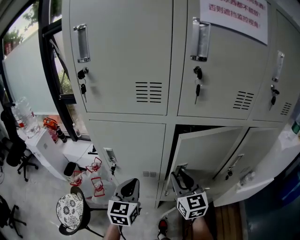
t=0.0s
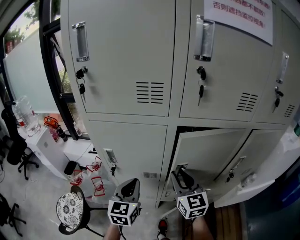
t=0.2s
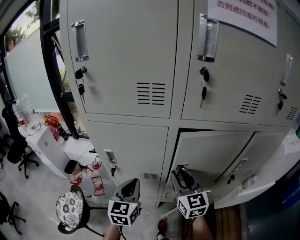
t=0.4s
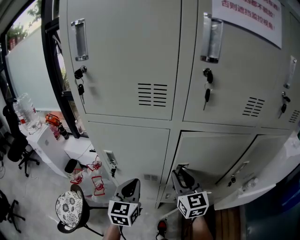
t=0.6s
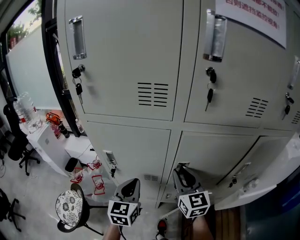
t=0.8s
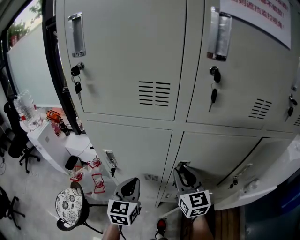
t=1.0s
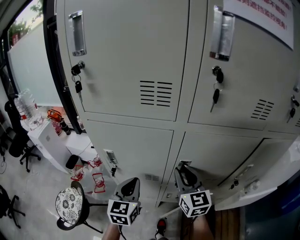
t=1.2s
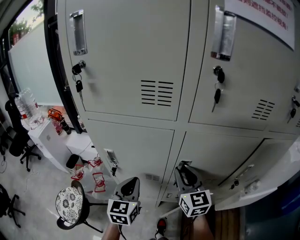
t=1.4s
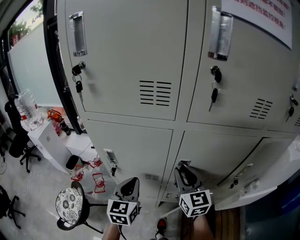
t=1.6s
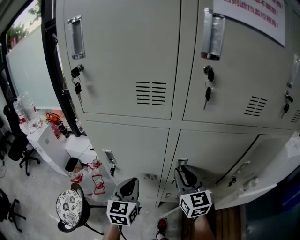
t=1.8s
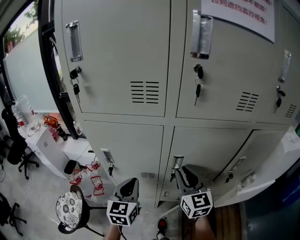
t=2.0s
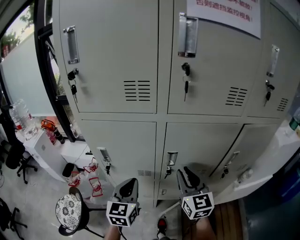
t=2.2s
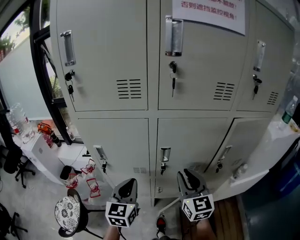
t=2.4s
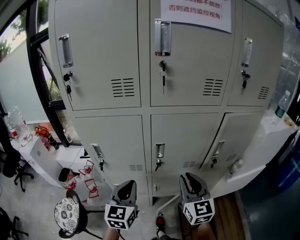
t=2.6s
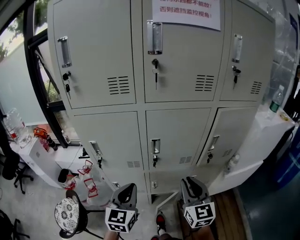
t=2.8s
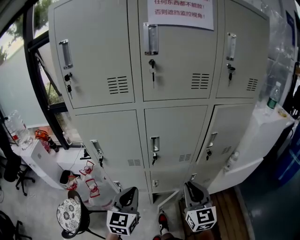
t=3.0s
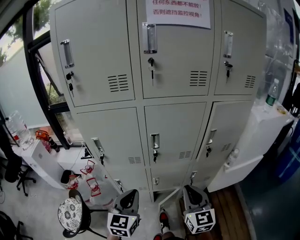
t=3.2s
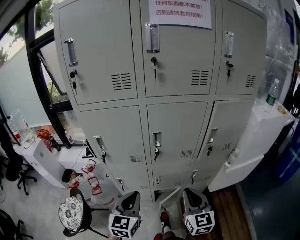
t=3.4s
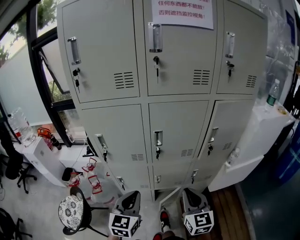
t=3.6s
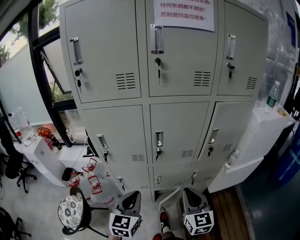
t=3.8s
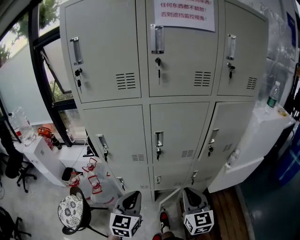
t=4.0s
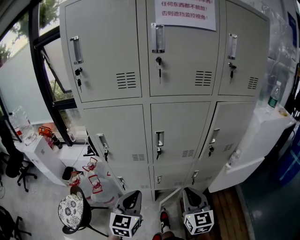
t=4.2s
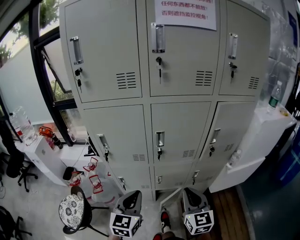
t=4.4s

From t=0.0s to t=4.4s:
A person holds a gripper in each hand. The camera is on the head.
From t=0.0s to t=1.4s: The right gripper heads forward, covering some 5 cm.
From t=1.4s to t=3.0s: Both grippers travel together backward and to the right, some 20 cm.
From t=3.0s to t=4.4s: The right gripper ends up about 5 cm from where it was.

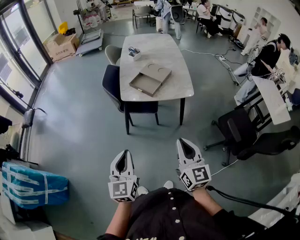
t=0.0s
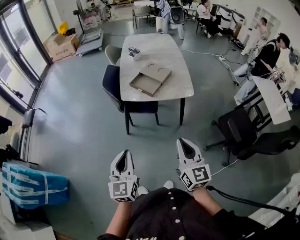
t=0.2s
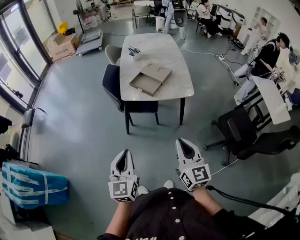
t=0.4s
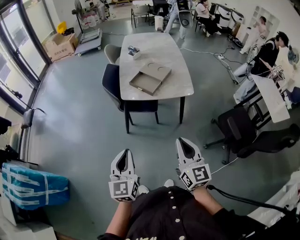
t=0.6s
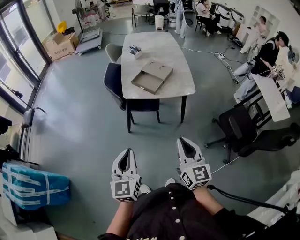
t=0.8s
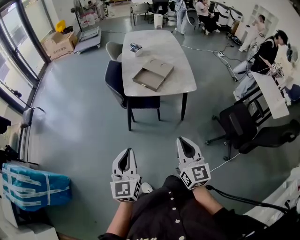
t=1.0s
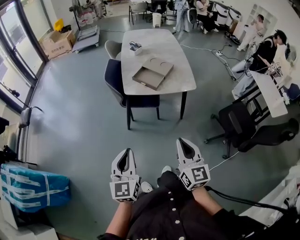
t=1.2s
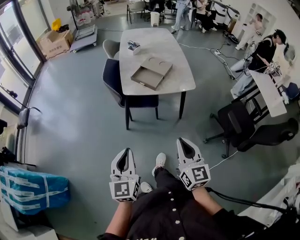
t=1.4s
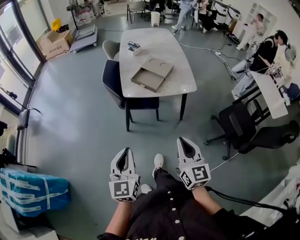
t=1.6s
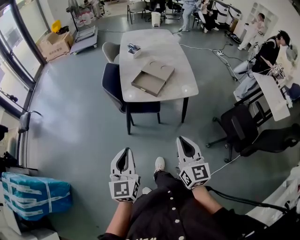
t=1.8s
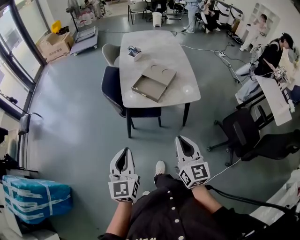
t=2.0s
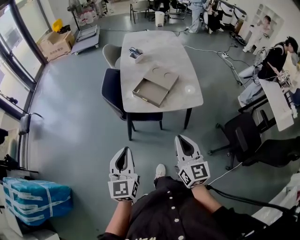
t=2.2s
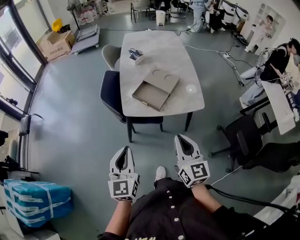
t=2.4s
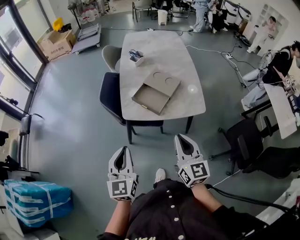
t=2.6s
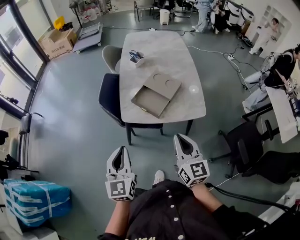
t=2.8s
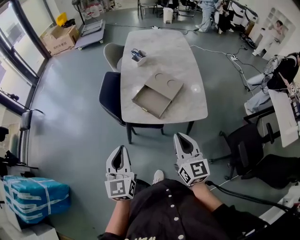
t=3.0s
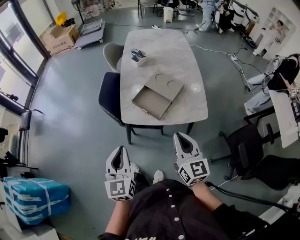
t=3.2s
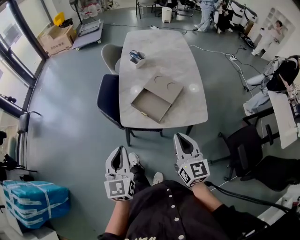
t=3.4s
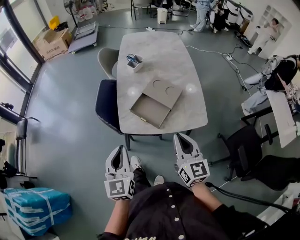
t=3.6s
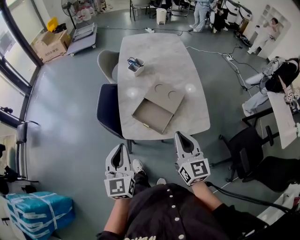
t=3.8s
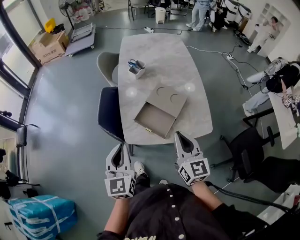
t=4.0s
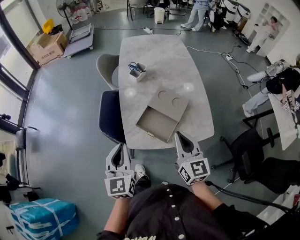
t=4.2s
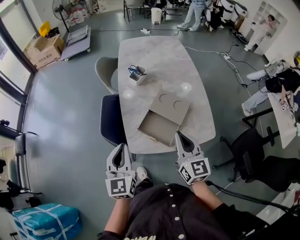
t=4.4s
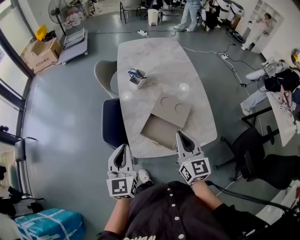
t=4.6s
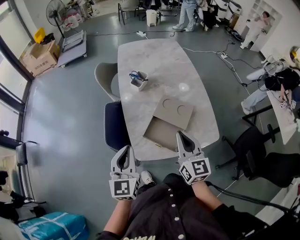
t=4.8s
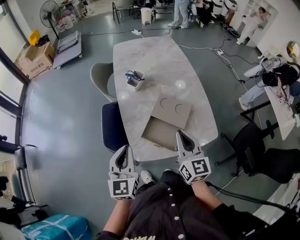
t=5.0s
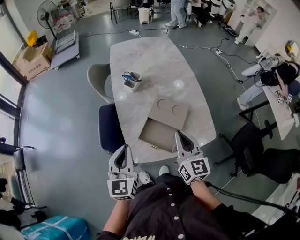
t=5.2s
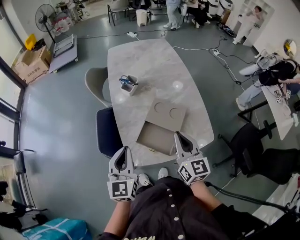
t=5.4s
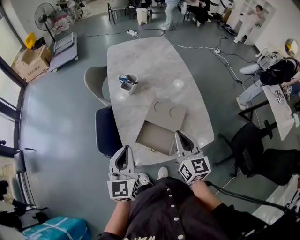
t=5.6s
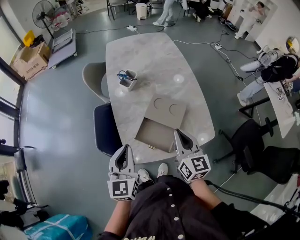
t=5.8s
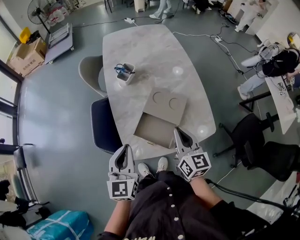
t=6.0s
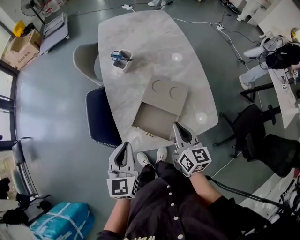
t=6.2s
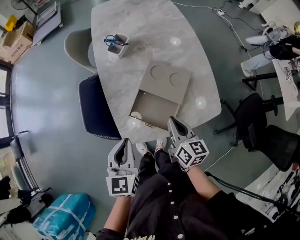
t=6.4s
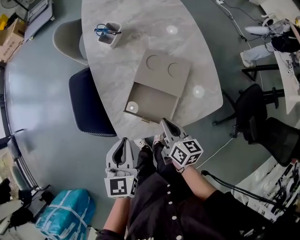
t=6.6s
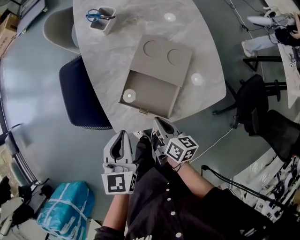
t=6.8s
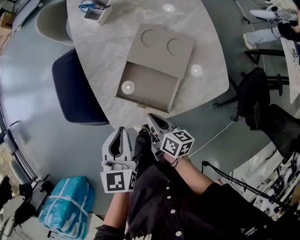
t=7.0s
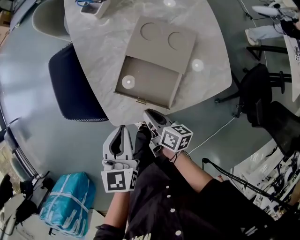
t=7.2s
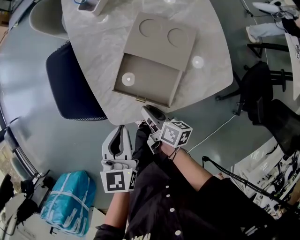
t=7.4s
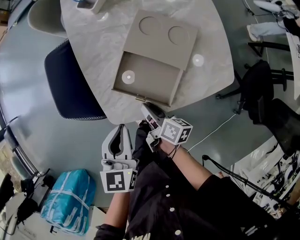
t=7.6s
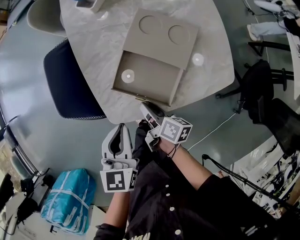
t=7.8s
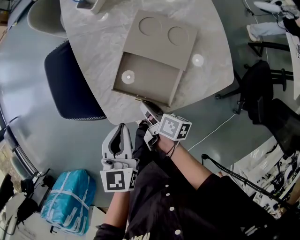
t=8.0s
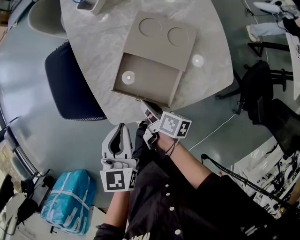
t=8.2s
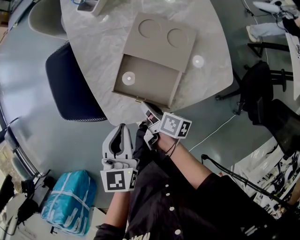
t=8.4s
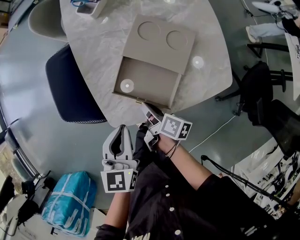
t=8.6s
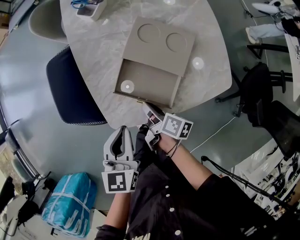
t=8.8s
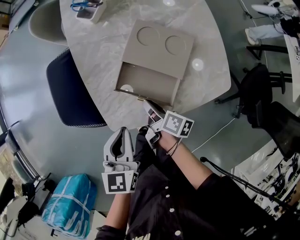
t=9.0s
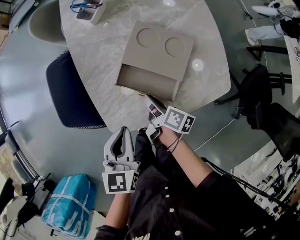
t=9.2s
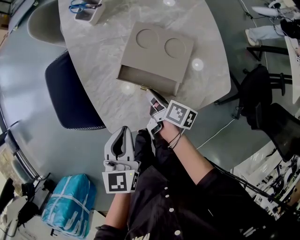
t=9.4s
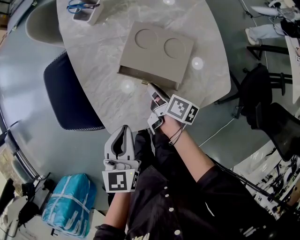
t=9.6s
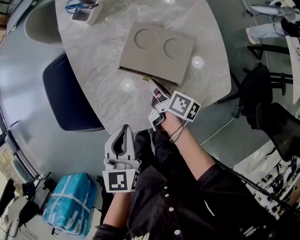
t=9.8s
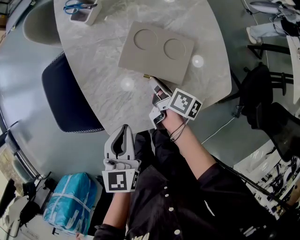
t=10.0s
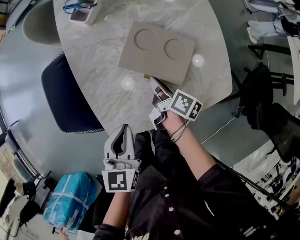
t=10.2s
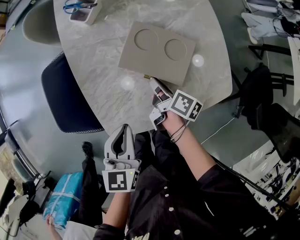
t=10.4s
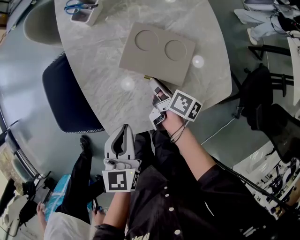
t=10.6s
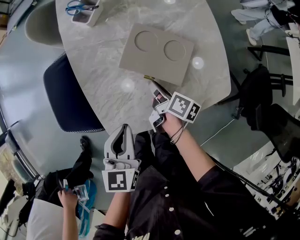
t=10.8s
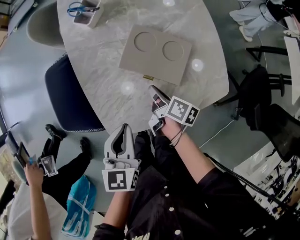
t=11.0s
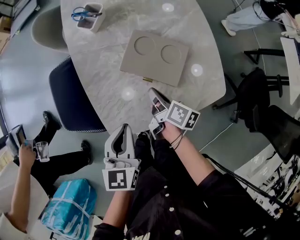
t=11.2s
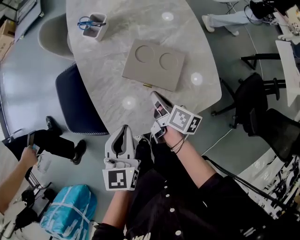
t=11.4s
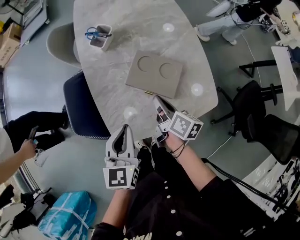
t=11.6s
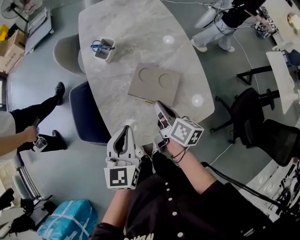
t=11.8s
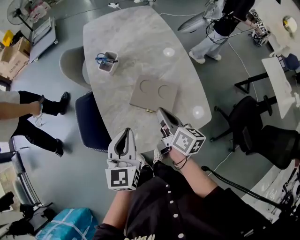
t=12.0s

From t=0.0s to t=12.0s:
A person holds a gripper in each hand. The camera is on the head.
From t=0.0s to t=1.6s: Both grippers travel together to the left, about 5 cm.
From t=1.6s to t=3.0s: The grippers both shift forward by some 25 cm.
From t=3.0s to t=4.4s: The two grippers go some 20 cm forward.
From t=4.4s to t=6.0s: Both grippers travel together forward, roughly 5 cm.
From t=6.0s to t=7.6s: The right gripper moves downward, about 30 cm, and rolls clockwise, seen from behind, by about 50 degrees. The left gripper is displaced downward by some 15 cm.
From t=7.6s to t=9.0s: The grippers stay close to where they were, moving slightly.
From t=9.0s to t=10.4s: The right gripper travels forward and to the right by roughly 10 cm.
From t=10.4s to t=12.0s: Both grippers travel together upward, some 20 cm. The right gripper rotates approximately 30 degrees.

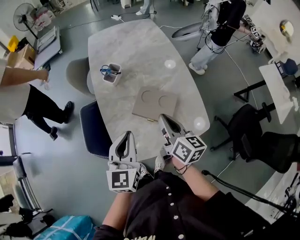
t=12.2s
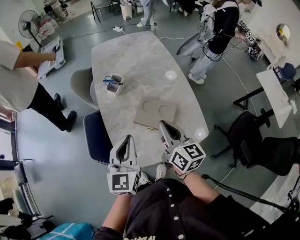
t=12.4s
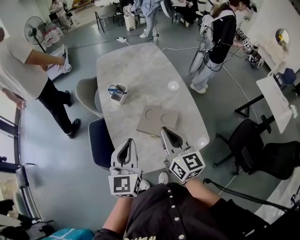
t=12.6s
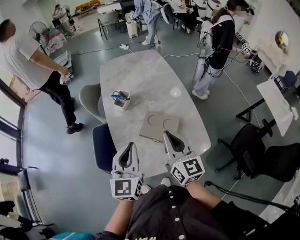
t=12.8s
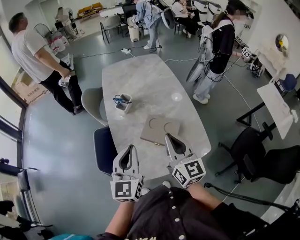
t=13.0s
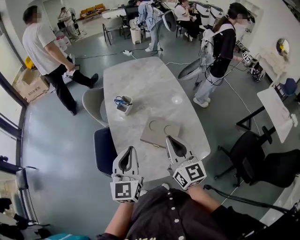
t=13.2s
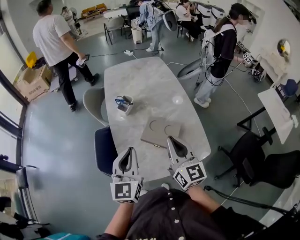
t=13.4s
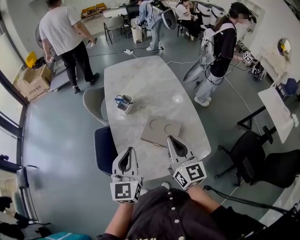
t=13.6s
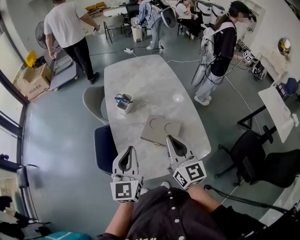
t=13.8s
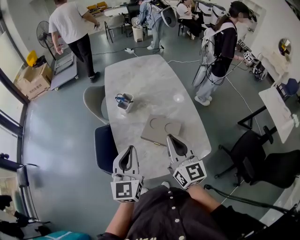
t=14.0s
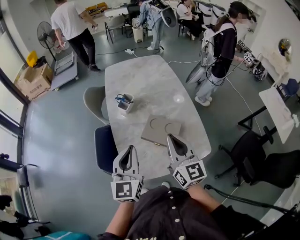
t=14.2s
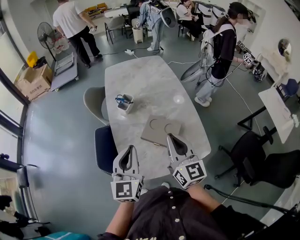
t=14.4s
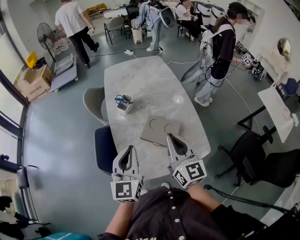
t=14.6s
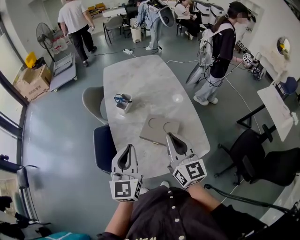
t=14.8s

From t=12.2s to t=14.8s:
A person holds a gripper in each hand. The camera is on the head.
From t=12.2s to t=13.4s: The right gripper shifts roughly 10 cm upward, and turns by about 30 degrees. The left gripper is displaced upward by some 5 cm.
From t=13.4s to t=14.8s: The grippers move only a little.

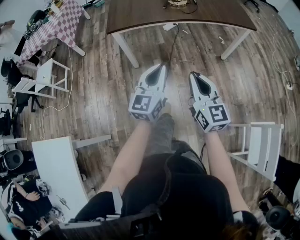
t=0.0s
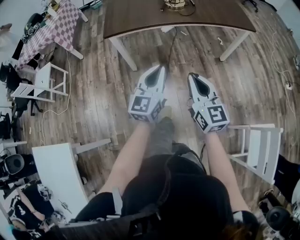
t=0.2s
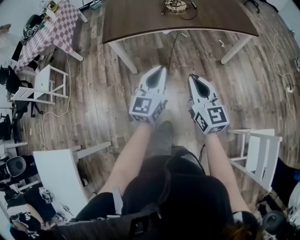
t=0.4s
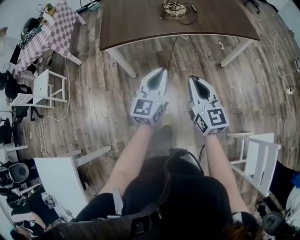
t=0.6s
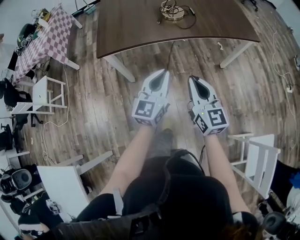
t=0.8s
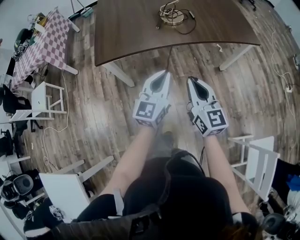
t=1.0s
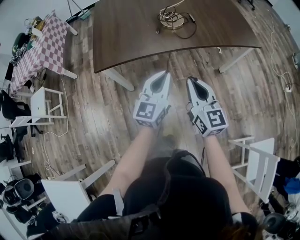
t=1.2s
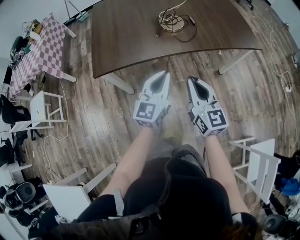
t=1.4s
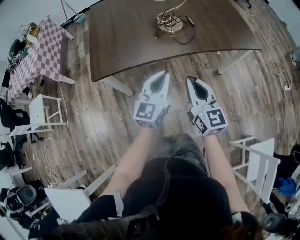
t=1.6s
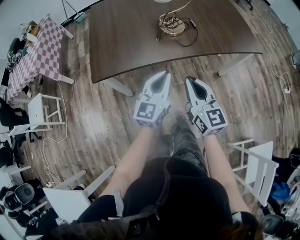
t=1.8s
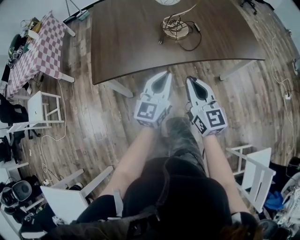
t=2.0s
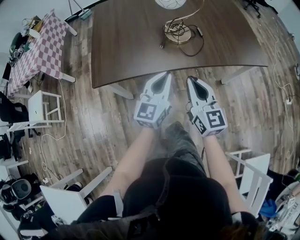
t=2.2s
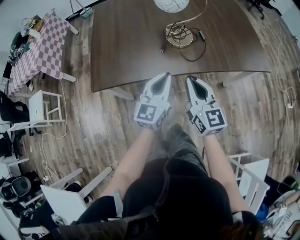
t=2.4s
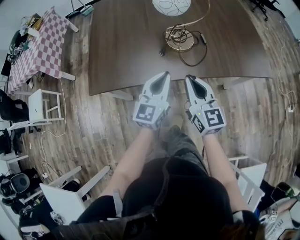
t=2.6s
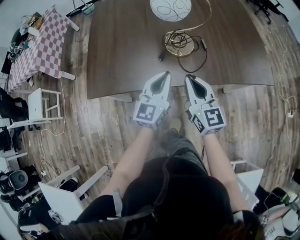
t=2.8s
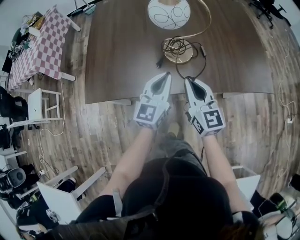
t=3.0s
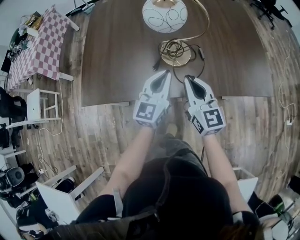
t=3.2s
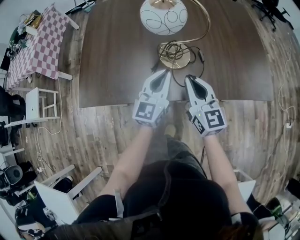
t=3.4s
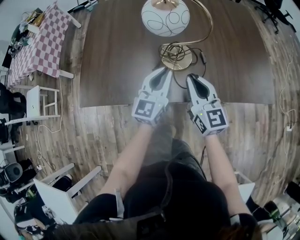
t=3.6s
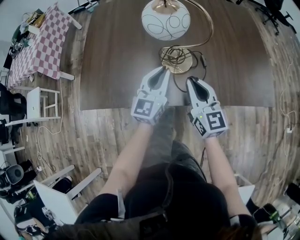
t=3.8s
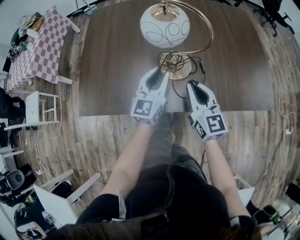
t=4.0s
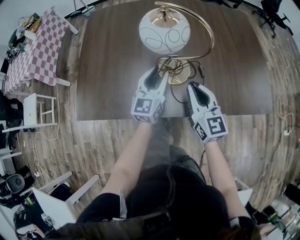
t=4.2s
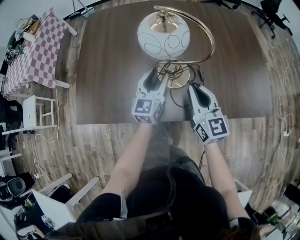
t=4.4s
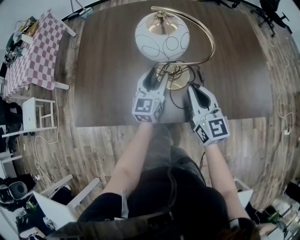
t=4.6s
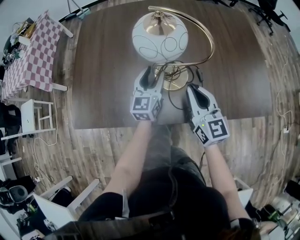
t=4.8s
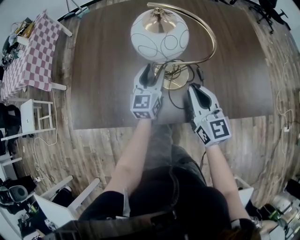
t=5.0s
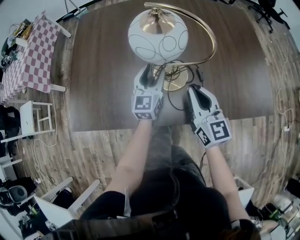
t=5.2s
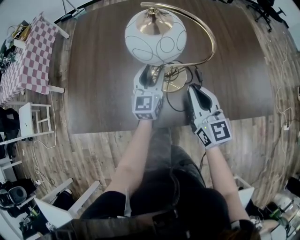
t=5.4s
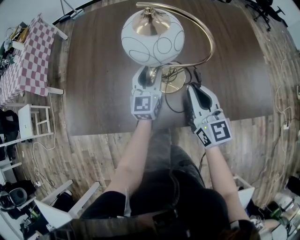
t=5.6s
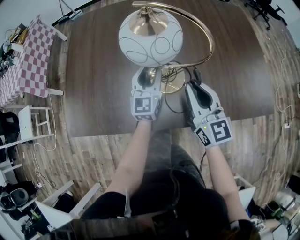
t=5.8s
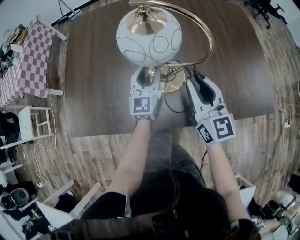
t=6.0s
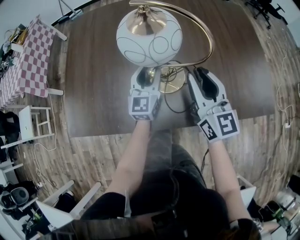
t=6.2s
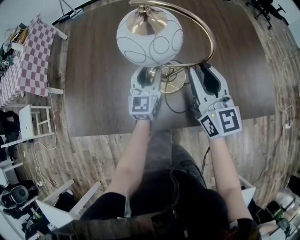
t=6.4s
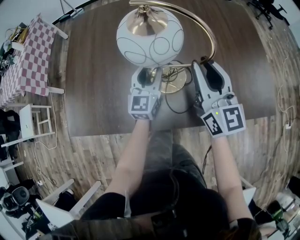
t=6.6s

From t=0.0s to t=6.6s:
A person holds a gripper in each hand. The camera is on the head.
From t=0.0s to t=1.6s: The grippers both shift forward by approximately 25 cm.
From t=1.6s to t=3.2s: Both grippers travel together forward, roughly 20 cm.
From t=3.2s to t=5.0s: The right gripper is displaced forward by about 10 cm. The left gripper heads forward and downward, covering roughly 15 cm, and opens its fingers.
From t=5.0s to t=6.6s: The right gripper goes roughly 10 cm upward and forward, and opens its fingers.
